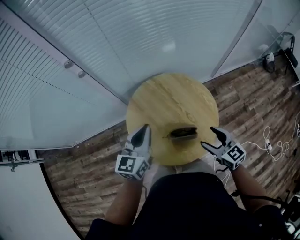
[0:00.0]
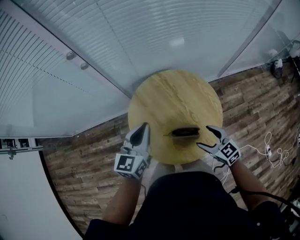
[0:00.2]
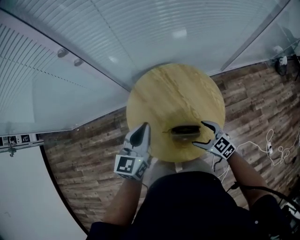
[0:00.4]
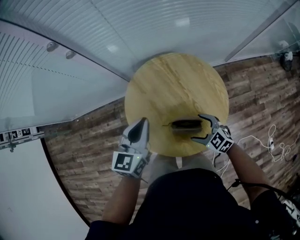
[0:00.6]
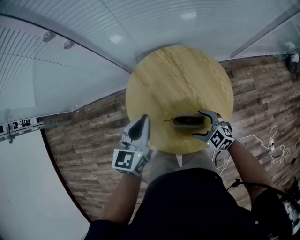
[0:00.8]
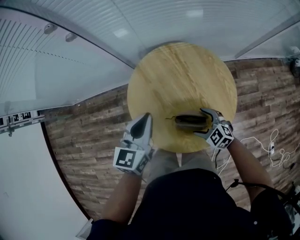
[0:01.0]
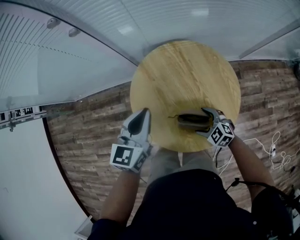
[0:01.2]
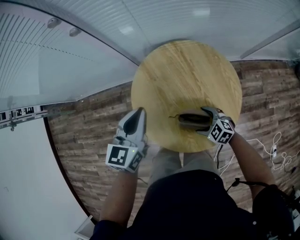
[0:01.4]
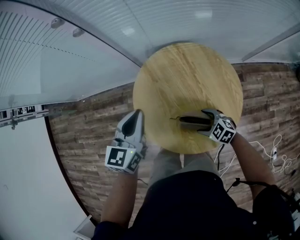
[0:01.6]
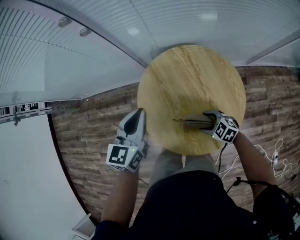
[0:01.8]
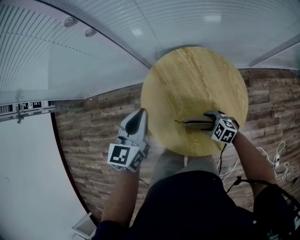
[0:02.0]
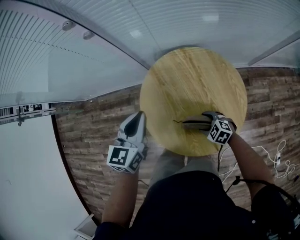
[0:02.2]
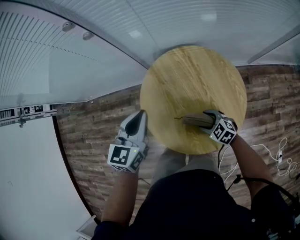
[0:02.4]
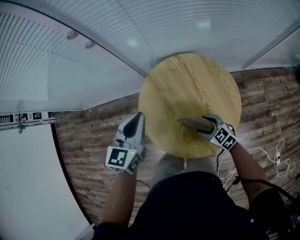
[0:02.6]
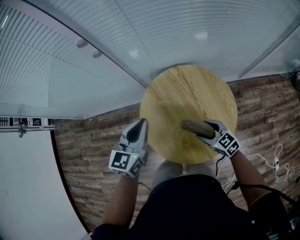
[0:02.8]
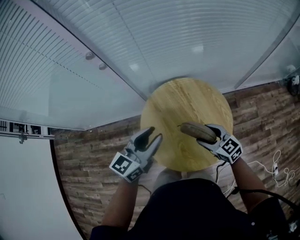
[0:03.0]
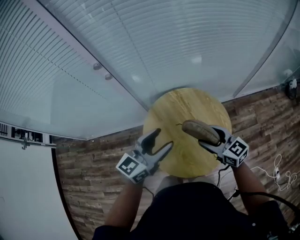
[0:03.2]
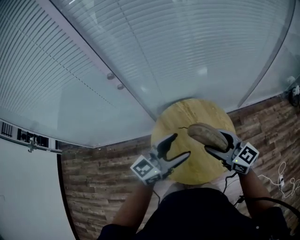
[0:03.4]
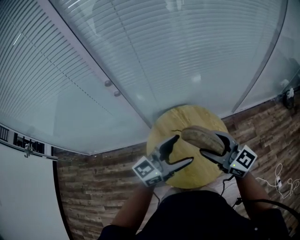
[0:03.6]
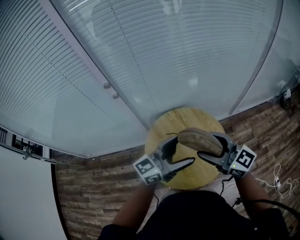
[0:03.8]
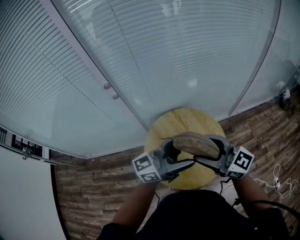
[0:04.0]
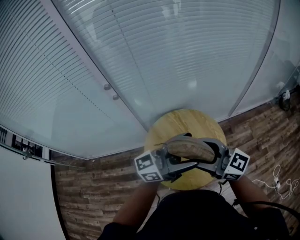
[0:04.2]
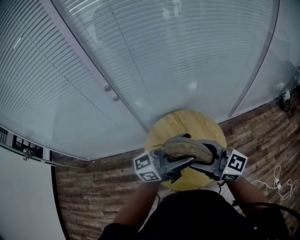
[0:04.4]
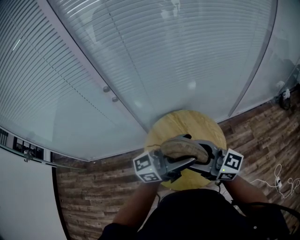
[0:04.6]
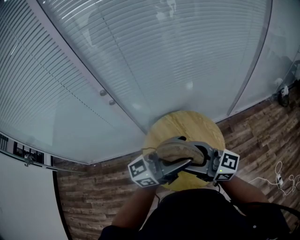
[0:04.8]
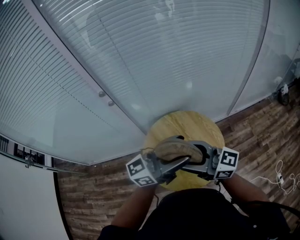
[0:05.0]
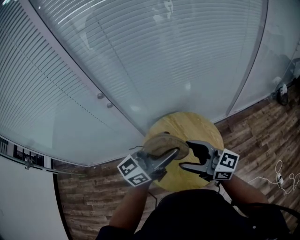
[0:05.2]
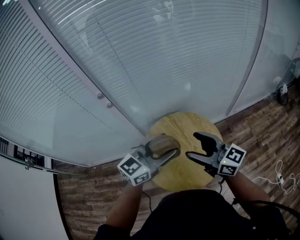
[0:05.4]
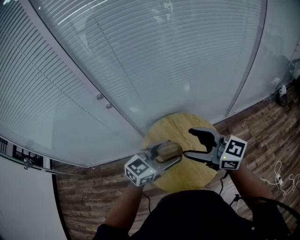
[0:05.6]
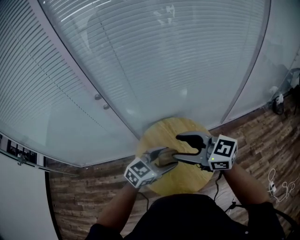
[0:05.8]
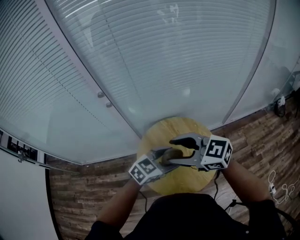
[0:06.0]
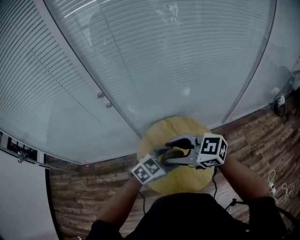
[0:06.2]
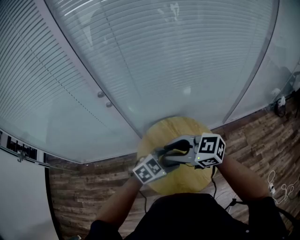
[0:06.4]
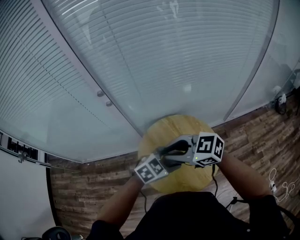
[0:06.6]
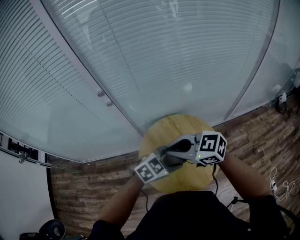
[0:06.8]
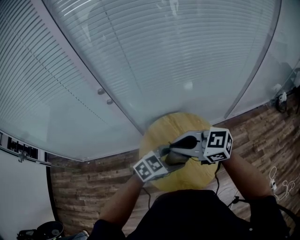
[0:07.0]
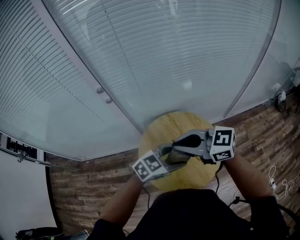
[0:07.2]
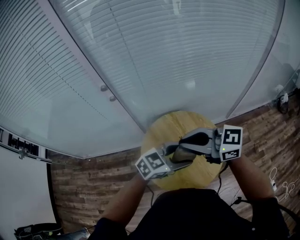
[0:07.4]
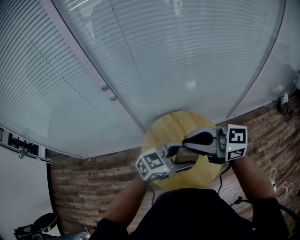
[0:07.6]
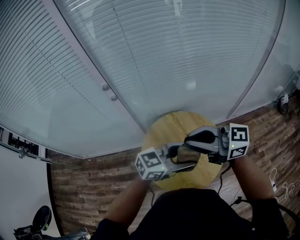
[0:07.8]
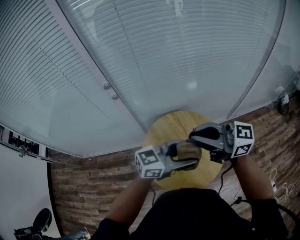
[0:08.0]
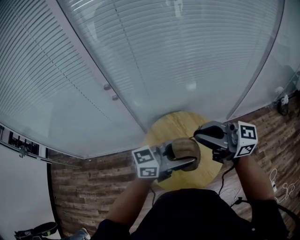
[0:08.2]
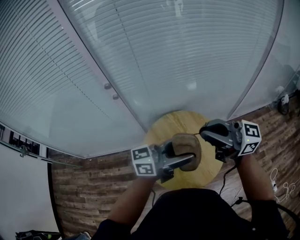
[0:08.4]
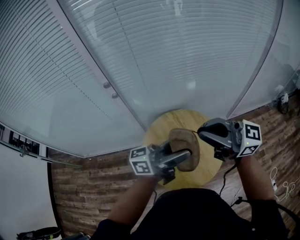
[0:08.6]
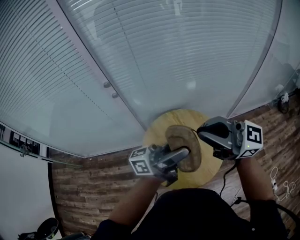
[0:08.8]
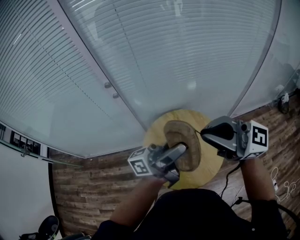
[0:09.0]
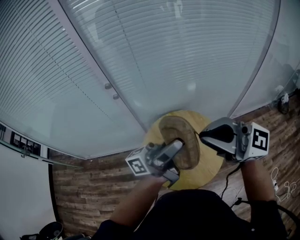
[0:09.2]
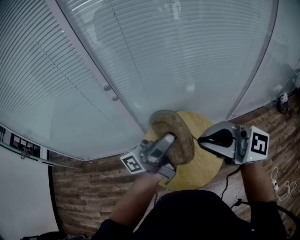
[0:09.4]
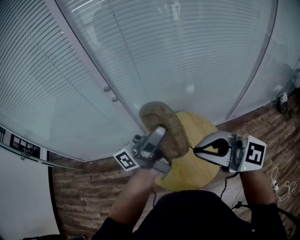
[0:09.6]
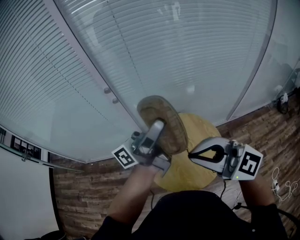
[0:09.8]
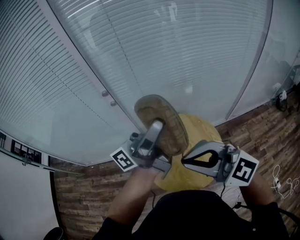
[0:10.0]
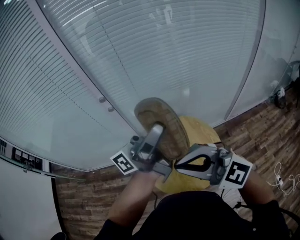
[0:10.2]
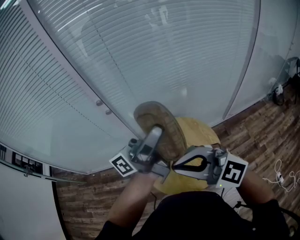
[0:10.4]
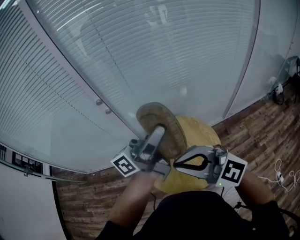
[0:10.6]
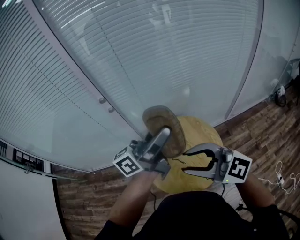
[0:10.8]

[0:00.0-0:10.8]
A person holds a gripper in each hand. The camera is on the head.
0:00.0 to 0:01.6: The left gripper is displaced downward by some 5 cm; the right gripper shifts about 20 cm downward, and turns by about 50 degrees.
0:01.6 to 0:03.0: The left gripper shifts some 10 cm upward, and changes its angle by some 20 degrees. The right gripper shifts some 20 cm upward, and swivels about 30 degrees.
0:03.0 to 0:04.6: The left gripper shifts about 15 cm upward, tips its fingers upward by about 30 degrees, and opens. Meanwhile the right gripper goes approximately 25 cm upward, and points its fingers some 40 degrees further upward.
0:04.6 to 0:06.2: The right gripper shifts by roughly 5 cm, and changes its angle by approximately 30 degrees; the left gripper goes approximately 15 cm downward, and tilts its fingers approximately 60 degrees downward.
0:06.2 to 0:07.8: The grippers both shift upward by about 5 cm. The left gripper changes its angle by approximately 30 degrees; the right gripper changes its angle by some 20 degrees, and closes its fingers.
0:07.8 to 0:09.2: The left gripper goes approximately 15 cm upward, and angles its fingers upward, by some 50 degrees; the right gripper shifts about 10 cm upward, and turns by some 20 degrees.
0:09.2 to 0:10.8: The left gripper moves roughly 10 cm upward and comes back, and rotates roughly 20 degrees. The right gripper travels downward by about 5 cm.

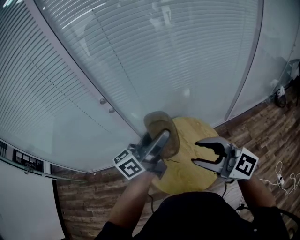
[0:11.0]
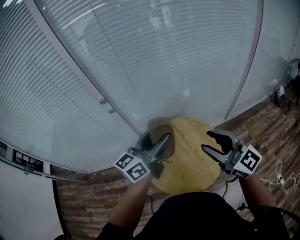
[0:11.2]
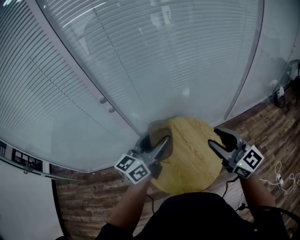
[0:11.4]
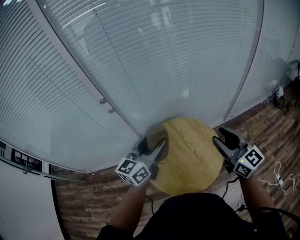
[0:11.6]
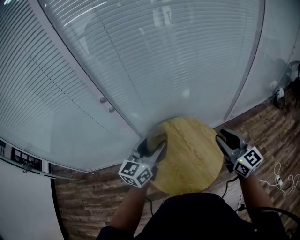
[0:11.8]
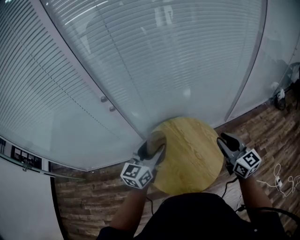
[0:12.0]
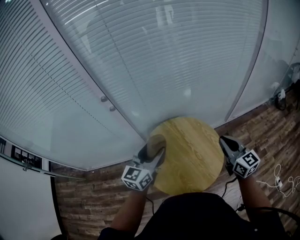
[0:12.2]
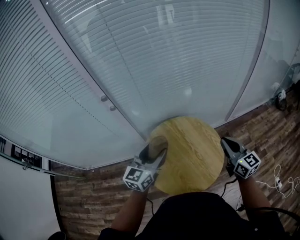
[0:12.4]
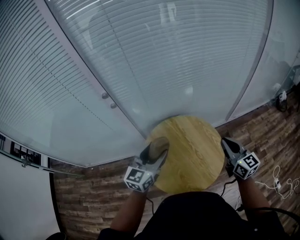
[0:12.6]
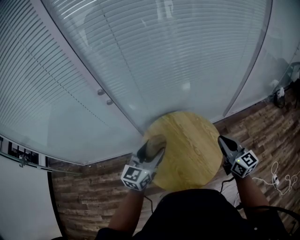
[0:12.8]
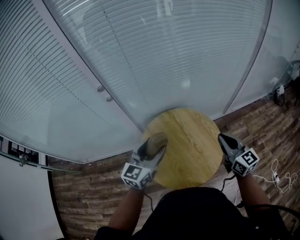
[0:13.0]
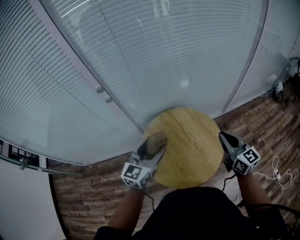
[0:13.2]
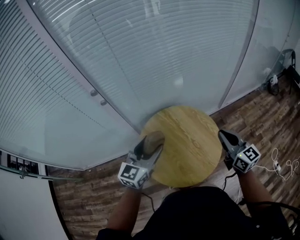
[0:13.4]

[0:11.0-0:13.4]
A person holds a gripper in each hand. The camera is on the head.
0:11.0 to 0:12.2: The right gripper heads to the right, downward and forward, covering roughly 20 cm, swivels approximately 40 degrees, and closes. Meanwhile the left gripper heads downward, covering about 15 cm, and turns by roughly 40 degrees.
0:12.2 to 0:13.4: The grippers stay close to where they were, moving slightly.

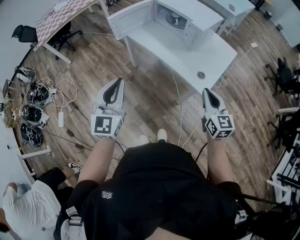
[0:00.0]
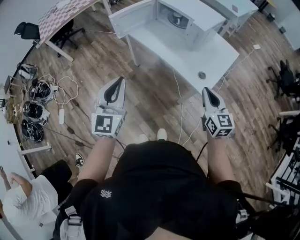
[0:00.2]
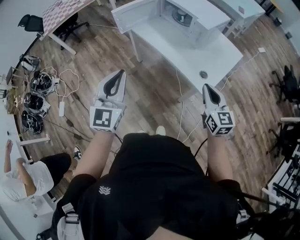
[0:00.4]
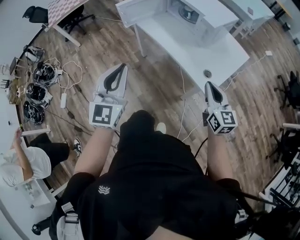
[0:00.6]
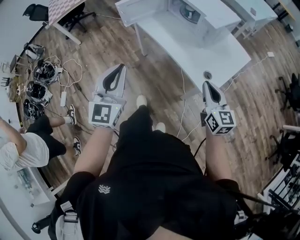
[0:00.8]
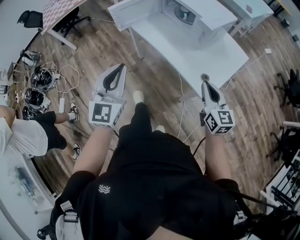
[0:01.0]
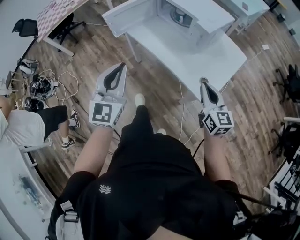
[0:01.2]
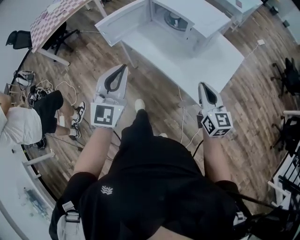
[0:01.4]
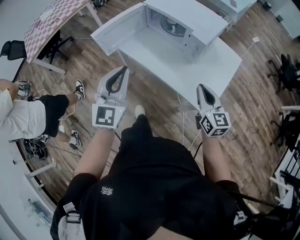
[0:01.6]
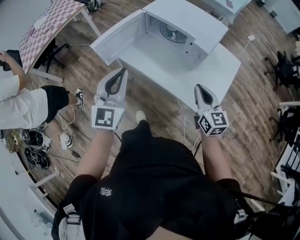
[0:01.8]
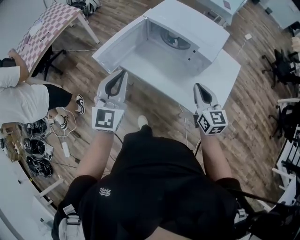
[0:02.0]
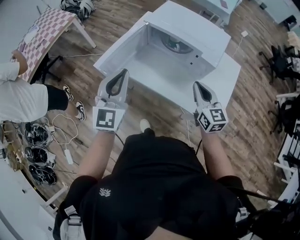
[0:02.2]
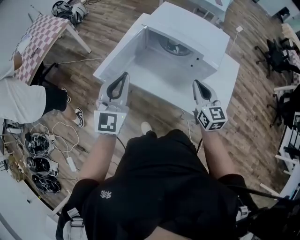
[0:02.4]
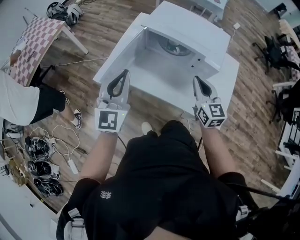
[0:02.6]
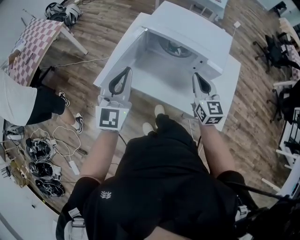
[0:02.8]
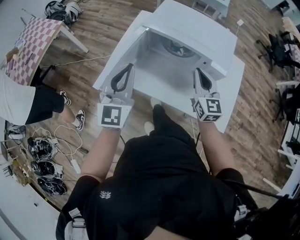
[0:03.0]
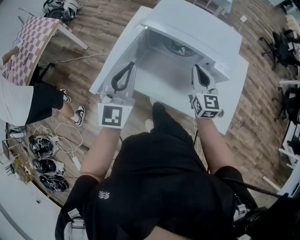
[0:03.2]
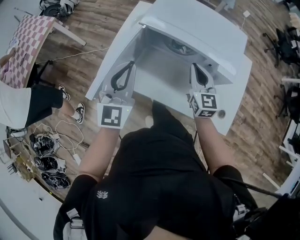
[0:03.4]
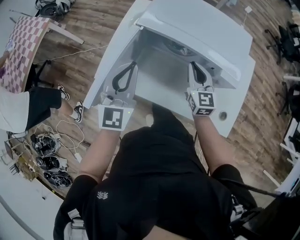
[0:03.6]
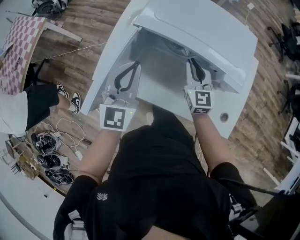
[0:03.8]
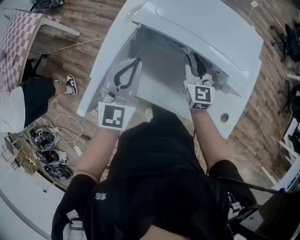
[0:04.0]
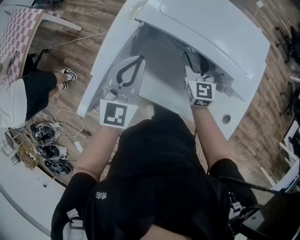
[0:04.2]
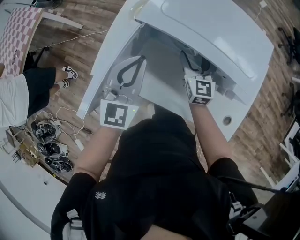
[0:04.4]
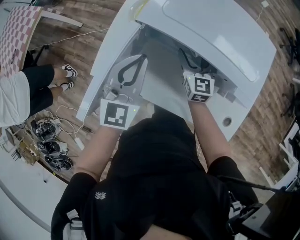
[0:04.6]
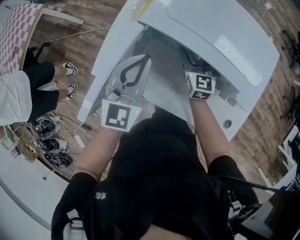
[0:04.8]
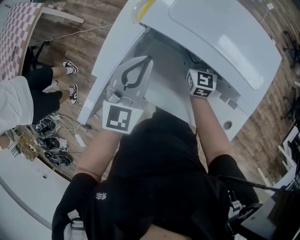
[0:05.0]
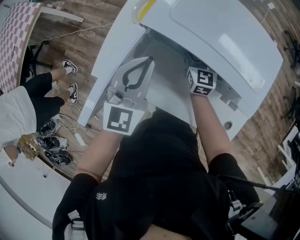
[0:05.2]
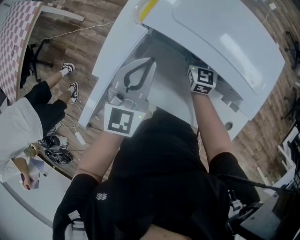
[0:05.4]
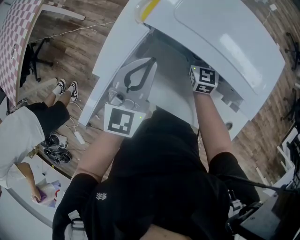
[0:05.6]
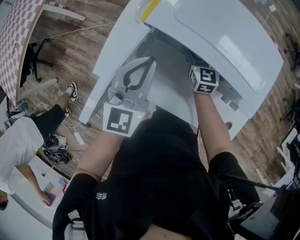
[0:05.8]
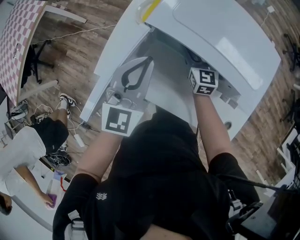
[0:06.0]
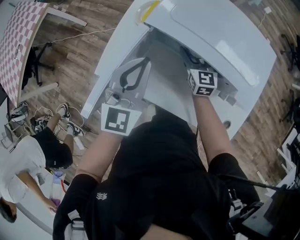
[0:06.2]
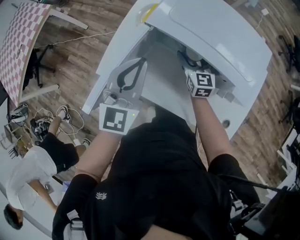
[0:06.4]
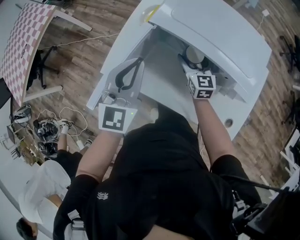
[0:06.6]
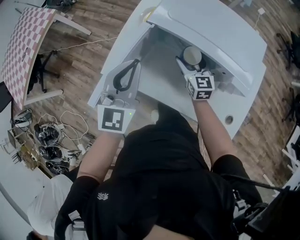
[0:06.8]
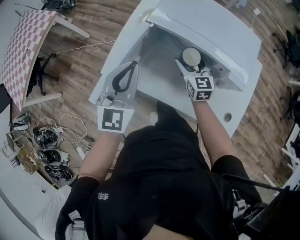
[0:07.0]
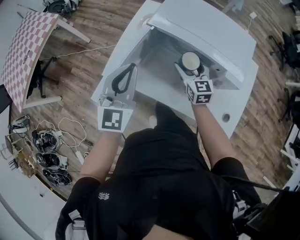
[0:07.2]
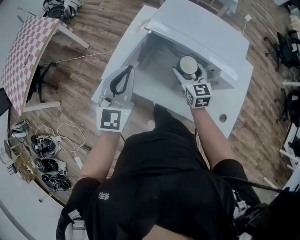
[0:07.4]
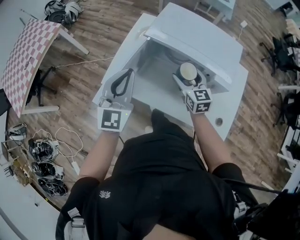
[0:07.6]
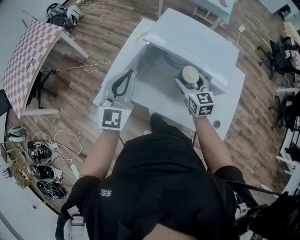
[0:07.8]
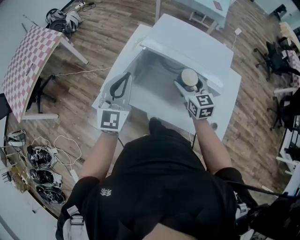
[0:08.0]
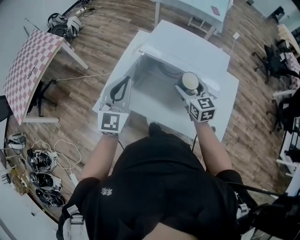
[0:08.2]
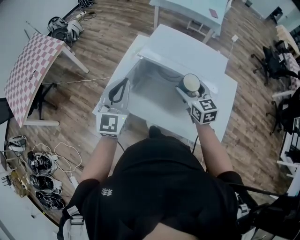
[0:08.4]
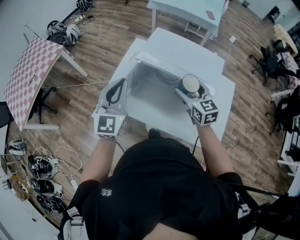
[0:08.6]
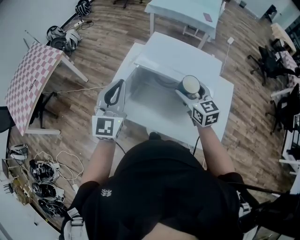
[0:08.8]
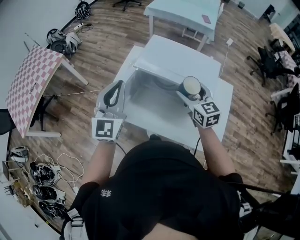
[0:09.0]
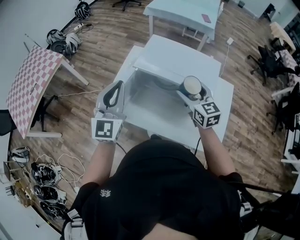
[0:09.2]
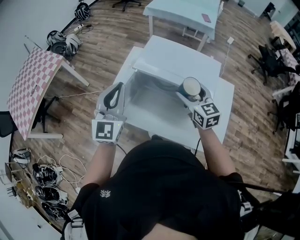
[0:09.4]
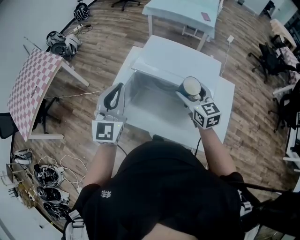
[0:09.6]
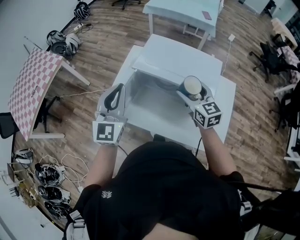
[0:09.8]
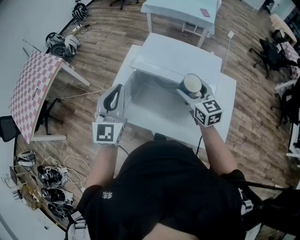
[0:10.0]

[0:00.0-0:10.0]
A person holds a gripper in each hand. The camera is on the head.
0:00.0 to 0:01.4: Both grippers travel together forward, some 15 cm.
0:01.4 to 0:02.8: Both grippers move forward and to the left, approximately 35 cm. The right gripper swivels some 20 degrees.
0:02.8 to 0:04.2: The two grippers go some 25 cm forward and downward. The right gripper opens.
0:04.2 to 0:05.8: The right gripper moves forward, about 10 cm, and opens up.
0:05.8 to 0:07.2: The left gripper goes some 15 cm backward, upward and to the left; the right gripper goes roughly 15 cm backward and upward.
0:07.2 to 0:08.6: The right gripper goes some 15 cm upward. The left gripper heads upward, covering some 10 cm.
0:08.6 to 0:10.0: There are only small adjustments of the grippers.
